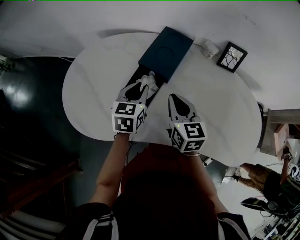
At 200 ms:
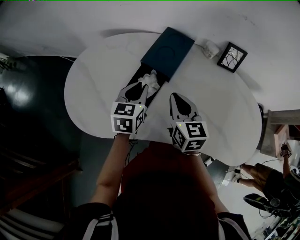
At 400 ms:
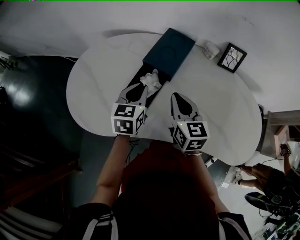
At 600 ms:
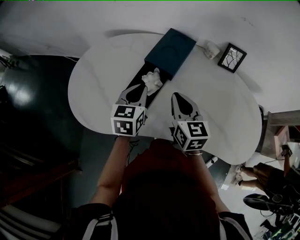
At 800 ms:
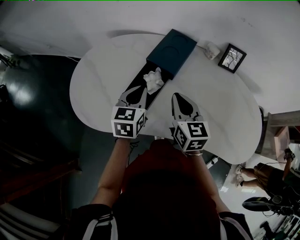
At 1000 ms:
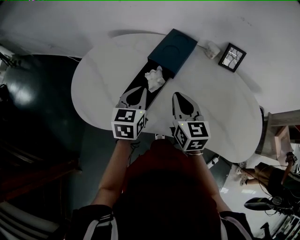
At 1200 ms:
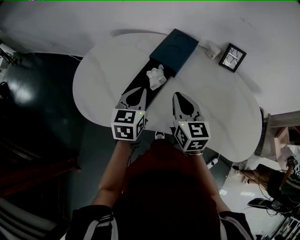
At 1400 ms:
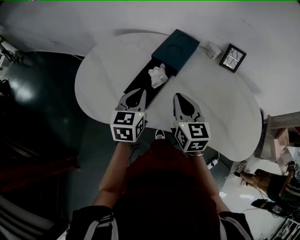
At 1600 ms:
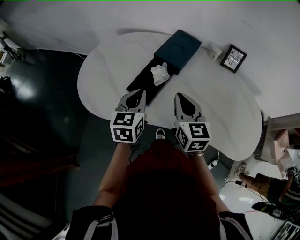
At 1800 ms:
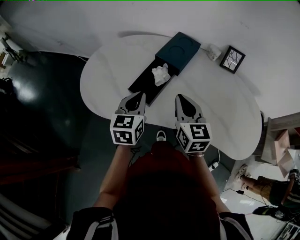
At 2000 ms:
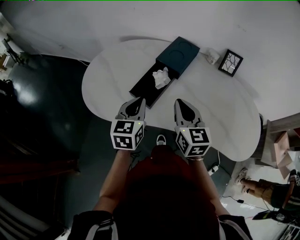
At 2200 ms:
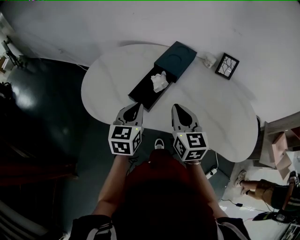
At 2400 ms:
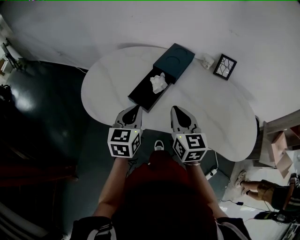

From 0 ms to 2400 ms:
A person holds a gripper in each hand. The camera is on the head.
From 0 ms to 1200 ms: The left gripper moves backward, approximately 10 cm, while the right gripper heads backward, covering approximately 5 cm.
From 1200 ms to 2400 ms: The two grippers go about 10 cm backward.

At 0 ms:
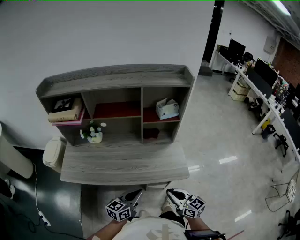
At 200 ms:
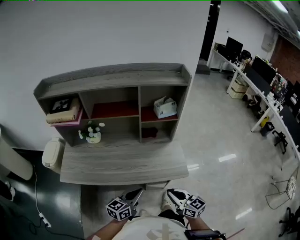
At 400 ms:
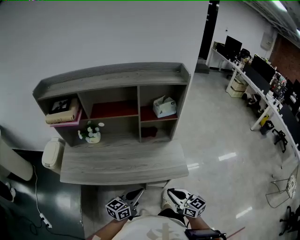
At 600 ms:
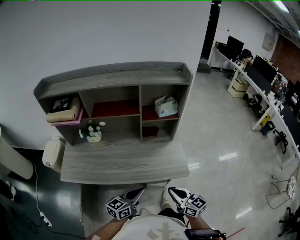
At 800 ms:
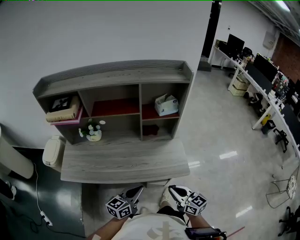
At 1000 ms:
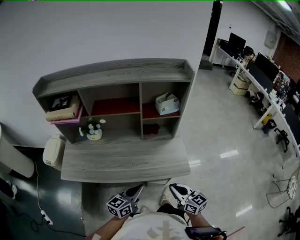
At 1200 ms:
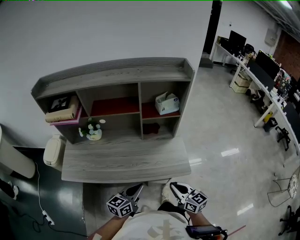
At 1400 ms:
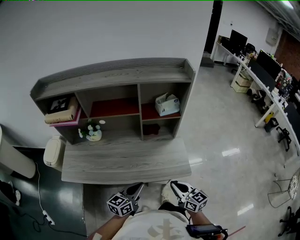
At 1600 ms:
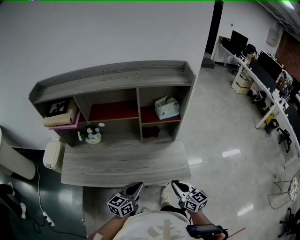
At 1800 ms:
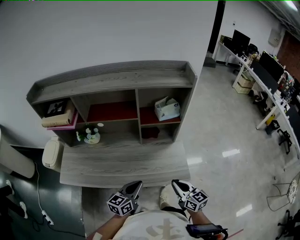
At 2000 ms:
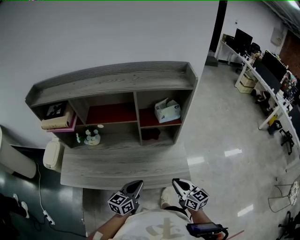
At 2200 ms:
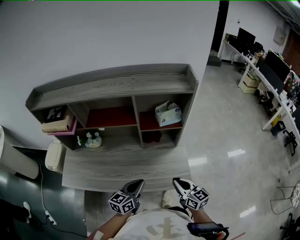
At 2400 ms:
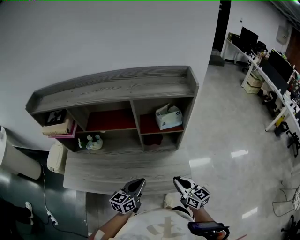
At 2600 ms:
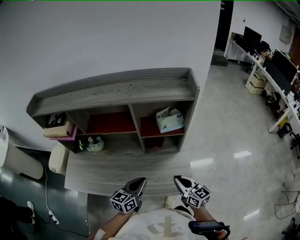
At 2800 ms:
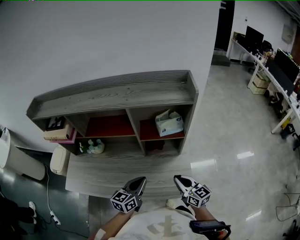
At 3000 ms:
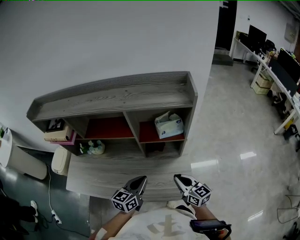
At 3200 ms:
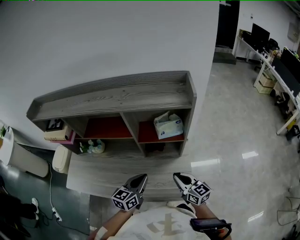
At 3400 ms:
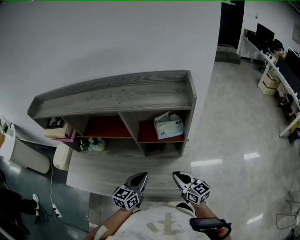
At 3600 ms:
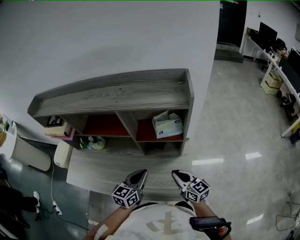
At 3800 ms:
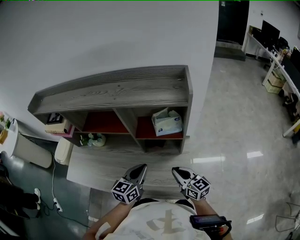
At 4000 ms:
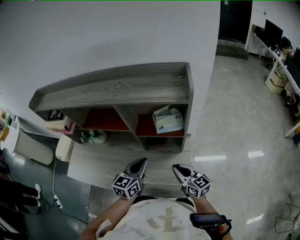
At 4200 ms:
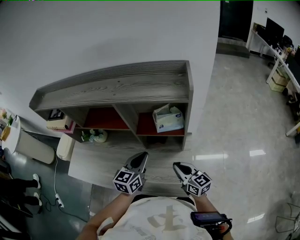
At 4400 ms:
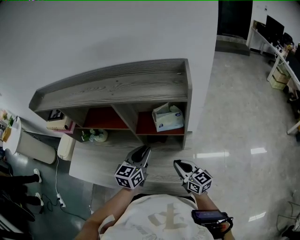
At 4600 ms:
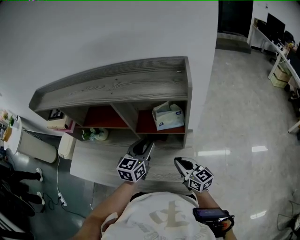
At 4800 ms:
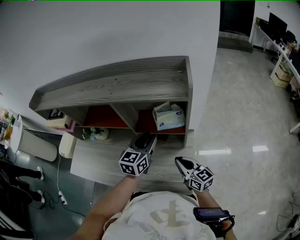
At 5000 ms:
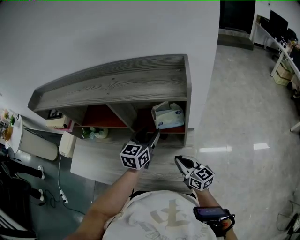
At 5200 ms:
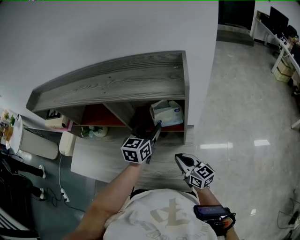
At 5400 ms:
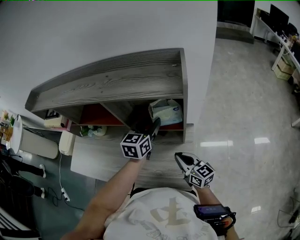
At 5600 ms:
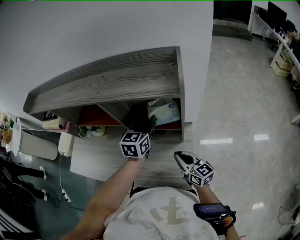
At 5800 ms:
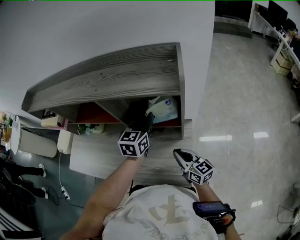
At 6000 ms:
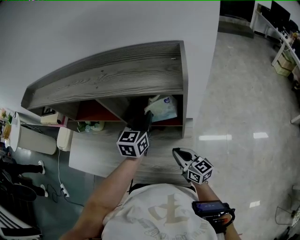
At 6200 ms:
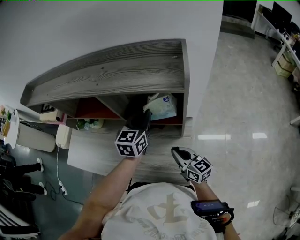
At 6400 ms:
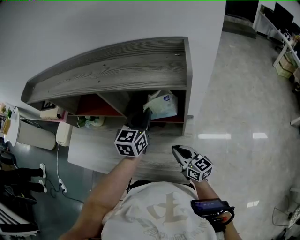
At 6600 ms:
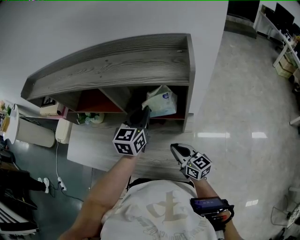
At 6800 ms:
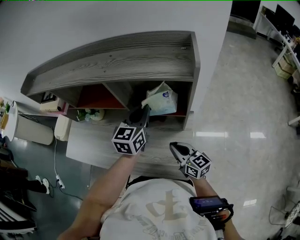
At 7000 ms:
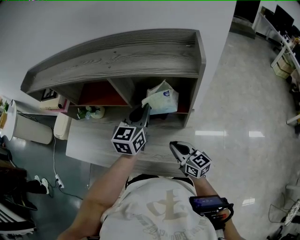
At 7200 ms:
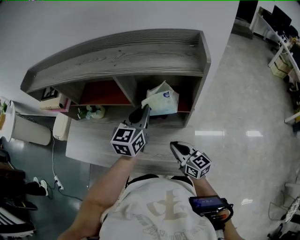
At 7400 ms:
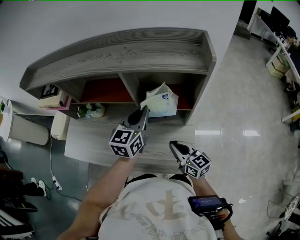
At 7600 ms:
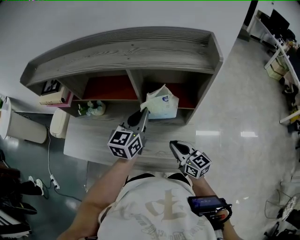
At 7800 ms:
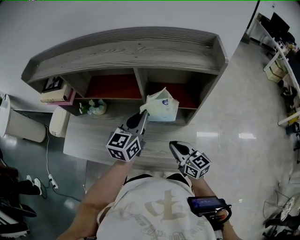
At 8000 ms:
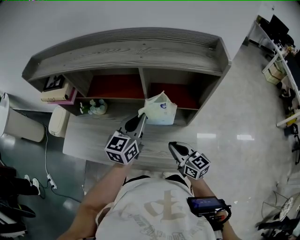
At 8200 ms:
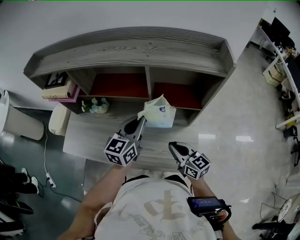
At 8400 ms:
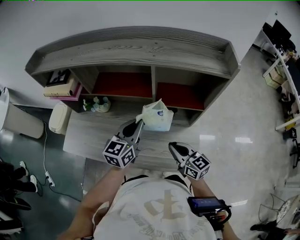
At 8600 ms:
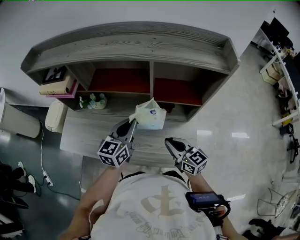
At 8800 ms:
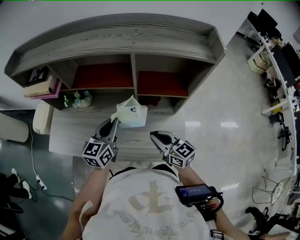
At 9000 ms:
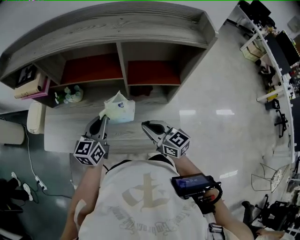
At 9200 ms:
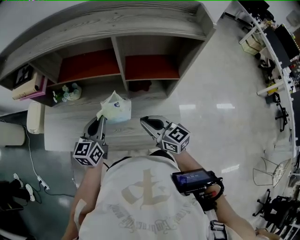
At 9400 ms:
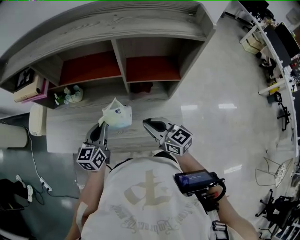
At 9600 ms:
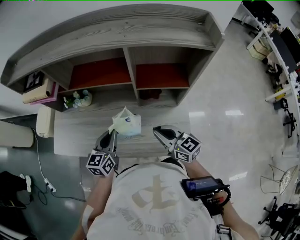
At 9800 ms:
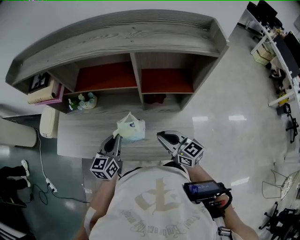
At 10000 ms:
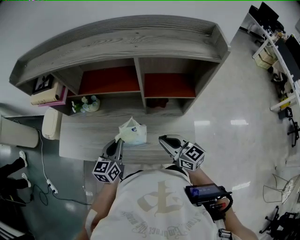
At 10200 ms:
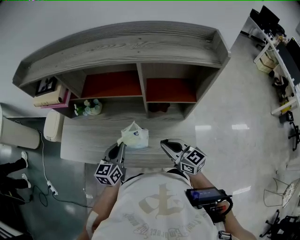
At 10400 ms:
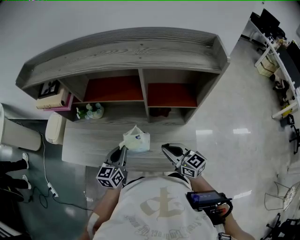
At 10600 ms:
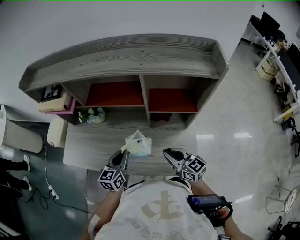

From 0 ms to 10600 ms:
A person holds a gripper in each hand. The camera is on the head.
From 0 ms to 1600 ms: Both grippers travel together forward, approximately 5 cm.
From 1600 ms to 3000 ms: Both grippers move forward, some 15 cm.
From 3000 ms to 4600 ms: The left gripper goes approximately 15 cm forward, to the right and upward, and opens. Meanwhile the right gripper heads forward, covering approximately 5 cm.
From 4600 ms to 6000 ms: The left gripper goes some 10 cm forward, and closes.
From 6000 ms to 7600 ms: The left gripper shifts approximately 10 cm to the left and backward; the right gripper travels to the left by approximately 10 cm.
From 7600 ms to 9000 ms: The left gripper heads to the left and downward, covering about 15 cm, while the right gripper heads to the left, covering approximately 10 cm.
From 9000 ms to 10600 ms: The left gripper ends up approximately 5 cm from where it was.

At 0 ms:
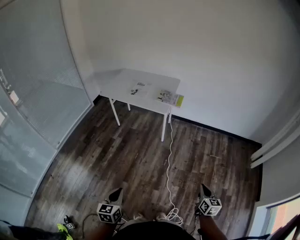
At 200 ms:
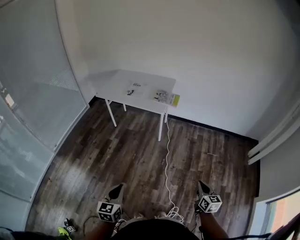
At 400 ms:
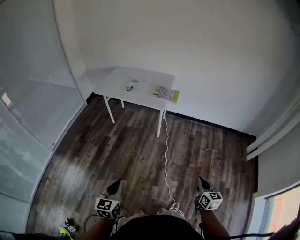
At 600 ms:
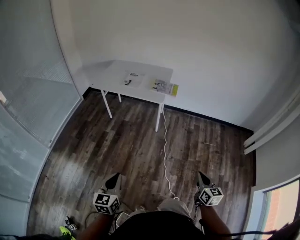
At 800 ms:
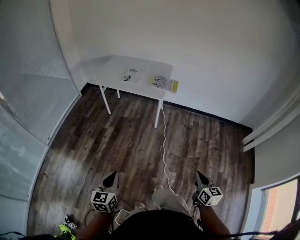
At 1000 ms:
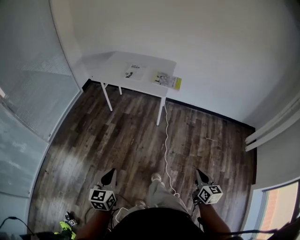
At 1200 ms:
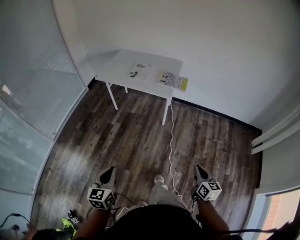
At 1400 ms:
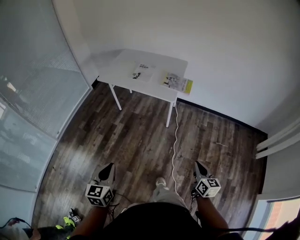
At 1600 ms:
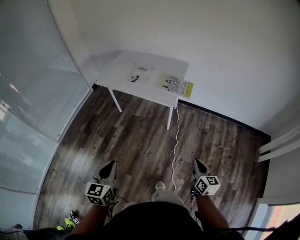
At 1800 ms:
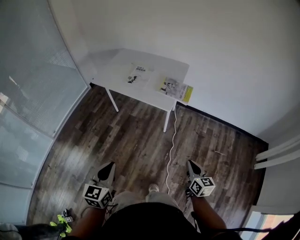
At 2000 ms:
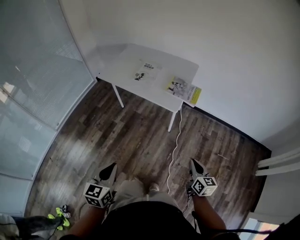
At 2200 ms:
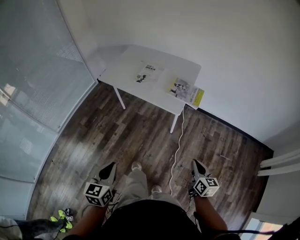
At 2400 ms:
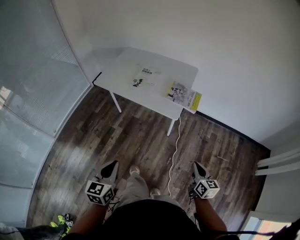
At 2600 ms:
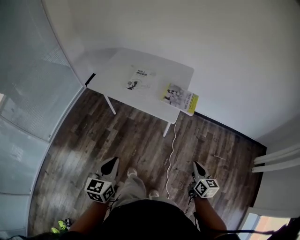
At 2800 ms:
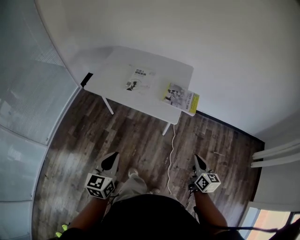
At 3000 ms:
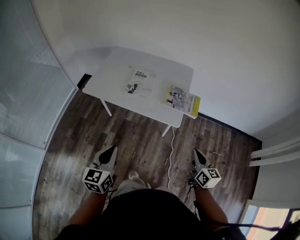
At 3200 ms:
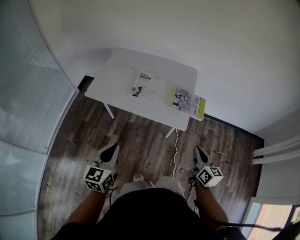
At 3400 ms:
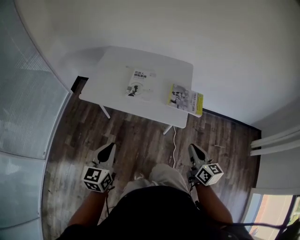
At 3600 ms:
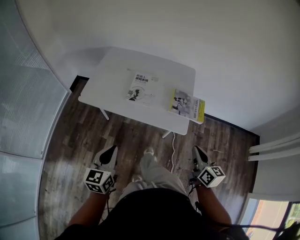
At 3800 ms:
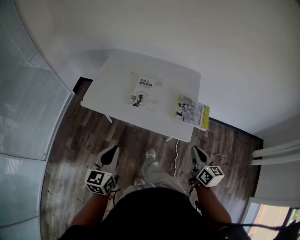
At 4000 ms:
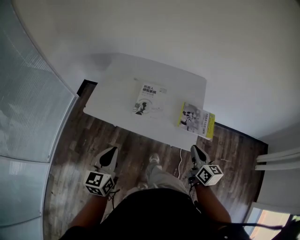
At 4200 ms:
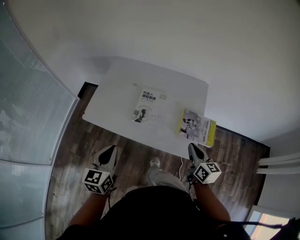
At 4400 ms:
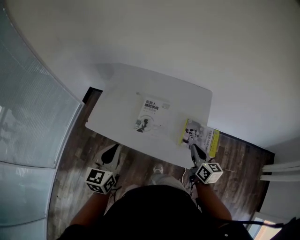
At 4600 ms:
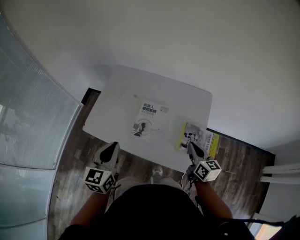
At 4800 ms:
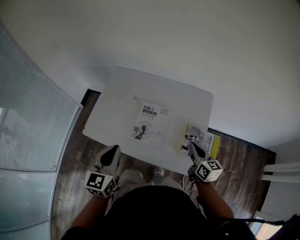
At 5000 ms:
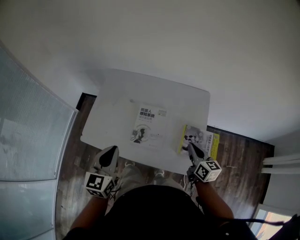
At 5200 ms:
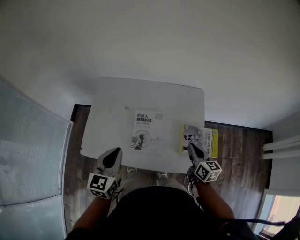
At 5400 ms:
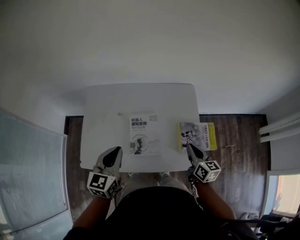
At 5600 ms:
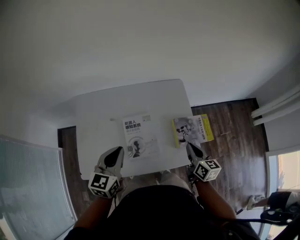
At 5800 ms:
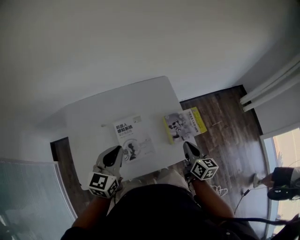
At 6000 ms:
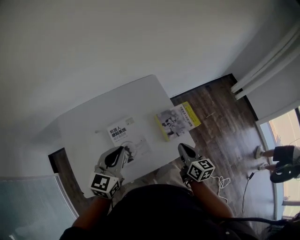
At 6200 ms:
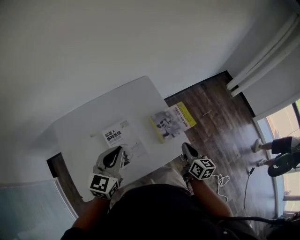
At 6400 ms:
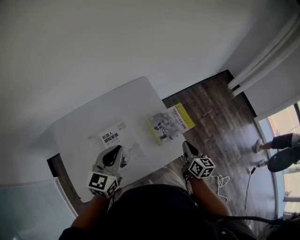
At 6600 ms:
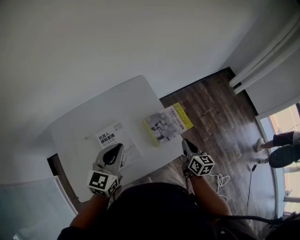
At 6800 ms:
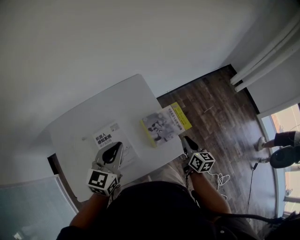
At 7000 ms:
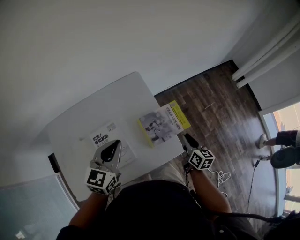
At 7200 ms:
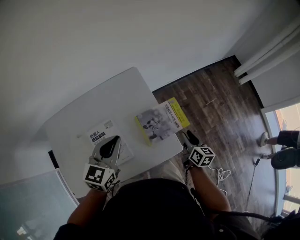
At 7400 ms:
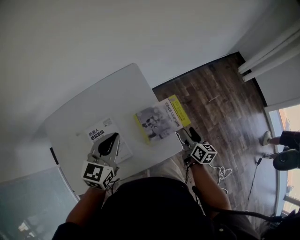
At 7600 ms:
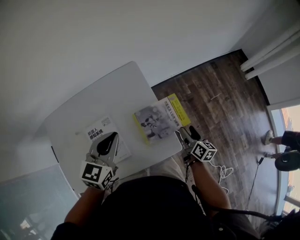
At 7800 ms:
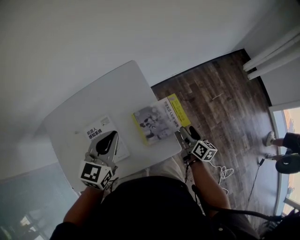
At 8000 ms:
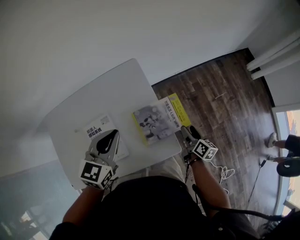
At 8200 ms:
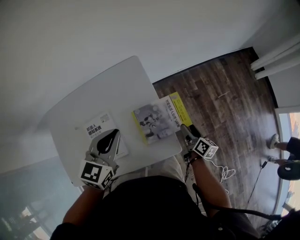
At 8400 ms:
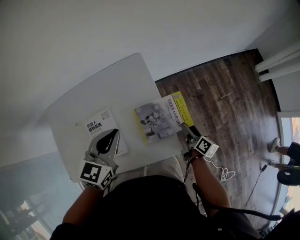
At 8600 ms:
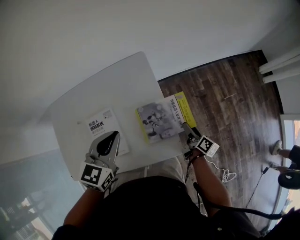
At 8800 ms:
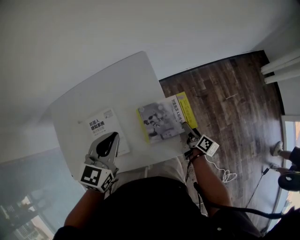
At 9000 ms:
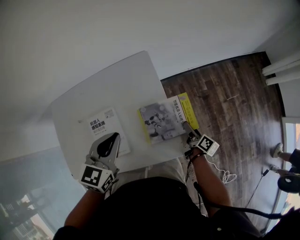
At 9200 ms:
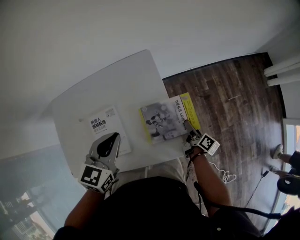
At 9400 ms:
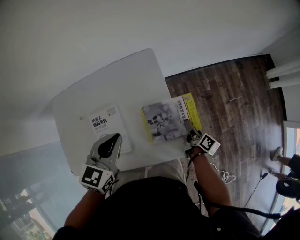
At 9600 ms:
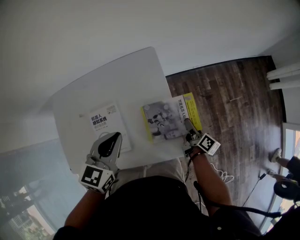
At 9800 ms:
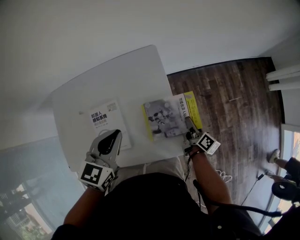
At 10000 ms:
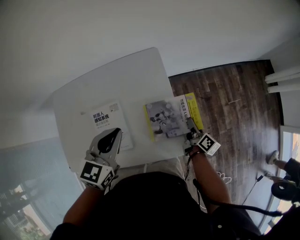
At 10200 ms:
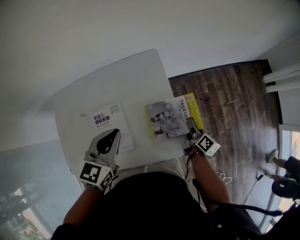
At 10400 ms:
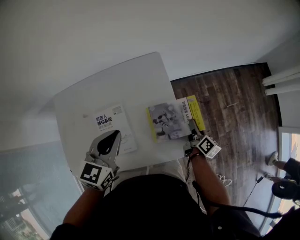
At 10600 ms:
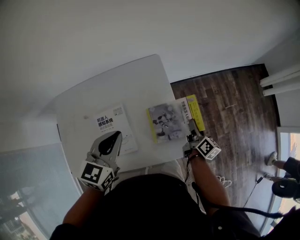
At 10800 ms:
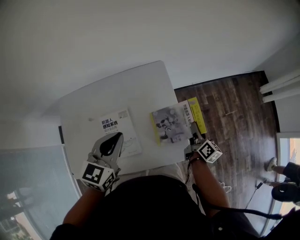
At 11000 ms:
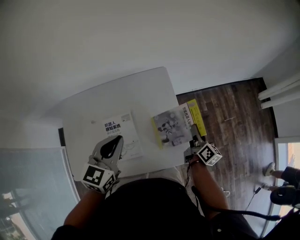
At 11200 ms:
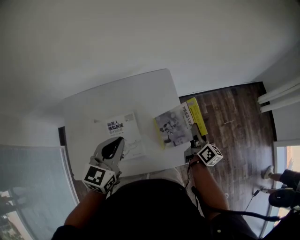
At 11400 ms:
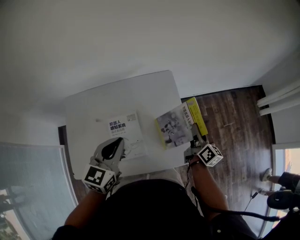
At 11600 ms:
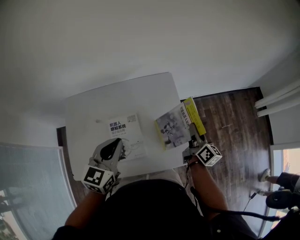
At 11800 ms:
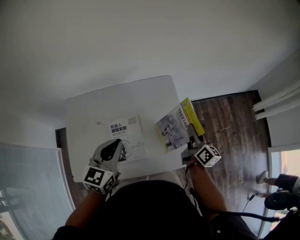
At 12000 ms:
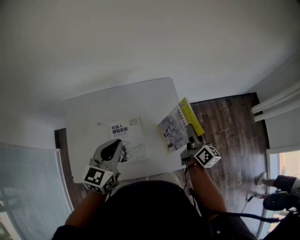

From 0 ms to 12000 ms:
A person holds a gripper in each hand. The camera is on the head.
From 0 ms to 1600 ms: The left gripper goes roughly 20 cm forward and upward; the right gripper shifts roughly 20 cm forward and to the left.
From 1600 ms to 3000 ms: The grippers both shift forward by roughly 25 cm.
From 3000 ms to 4400 ms: Both grippers move forward, about 25 cm.
From 4400 ms to 6000 ms: The left gripper shifts by some 20 cm, and swivels roughly 50 degrees. Meanwhile the right gripper ends up about 5 cm from where it was, and turns by some 40 degrees.
From 6000 ms to 7600 ms: The right gripper heads to the right, downward and forward, covering some 25 cm, swivels roughly 20 degrees, and opens its fingers, while the left gripper travels forward and to the right by approximately 15 cm.
From 7600 ms to 9000 ms: The right gripper heads downward, covering approximately 10 cm, and rotates approximately 30 degrees.
From 9000 ms to 10400 ms: The right gripper is displaced upward by about 5 cm, and closes.
From 10400 ms to 12000 ms: The right gripper goes about 20 cm upward and to the left, and swivels some 20 degrees, while the left gripper heads to the left, covering approximately 10 cm.
